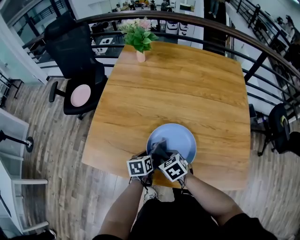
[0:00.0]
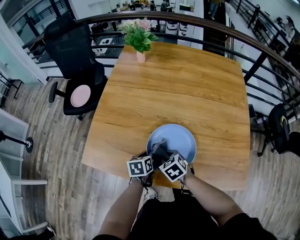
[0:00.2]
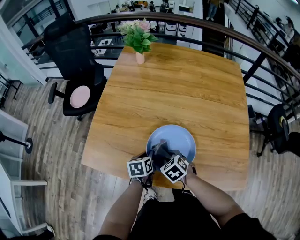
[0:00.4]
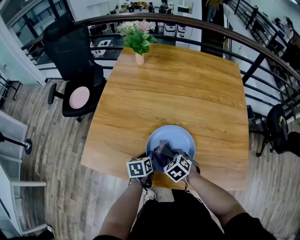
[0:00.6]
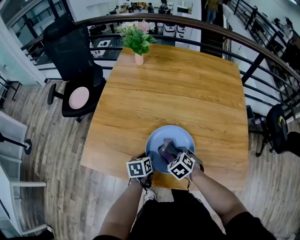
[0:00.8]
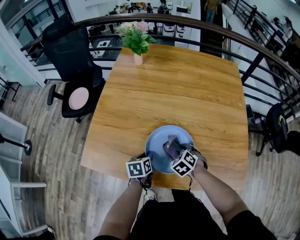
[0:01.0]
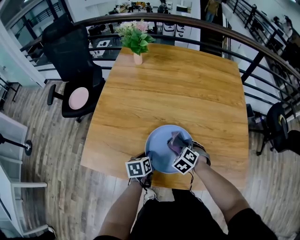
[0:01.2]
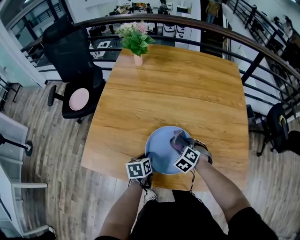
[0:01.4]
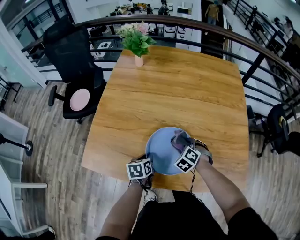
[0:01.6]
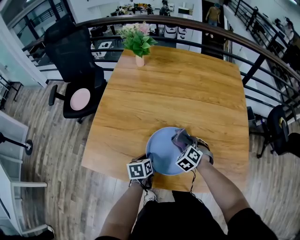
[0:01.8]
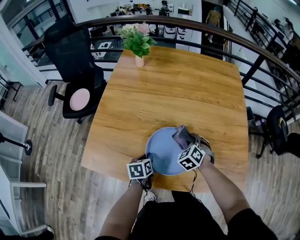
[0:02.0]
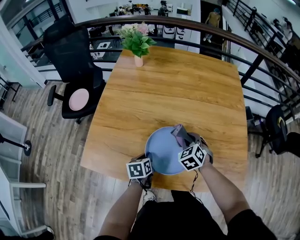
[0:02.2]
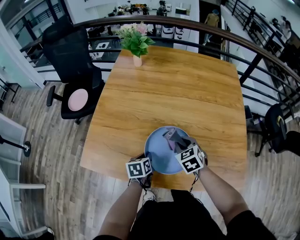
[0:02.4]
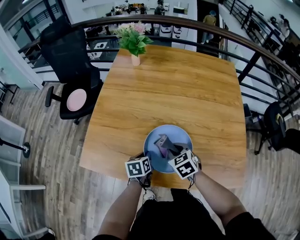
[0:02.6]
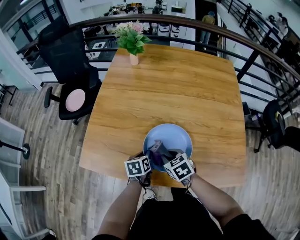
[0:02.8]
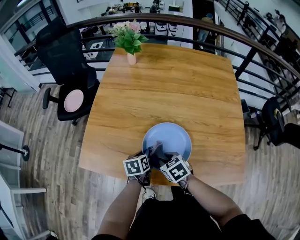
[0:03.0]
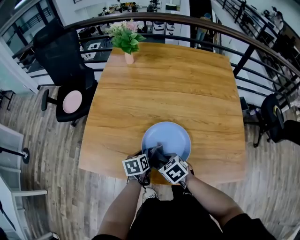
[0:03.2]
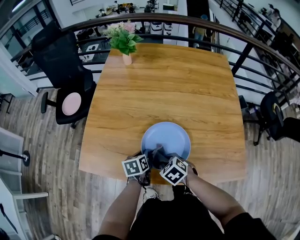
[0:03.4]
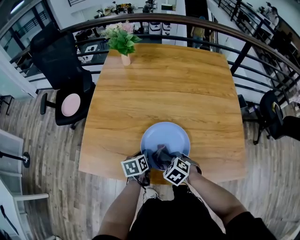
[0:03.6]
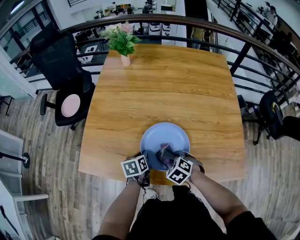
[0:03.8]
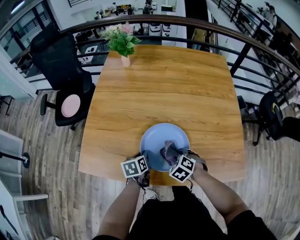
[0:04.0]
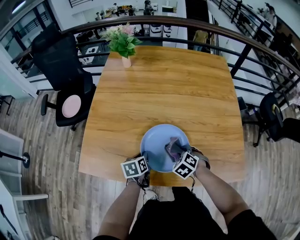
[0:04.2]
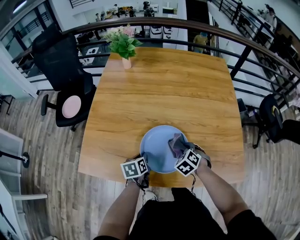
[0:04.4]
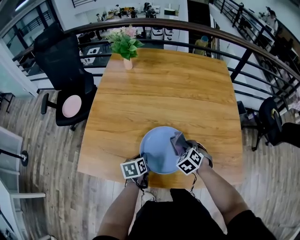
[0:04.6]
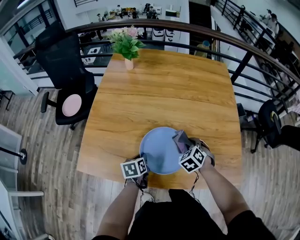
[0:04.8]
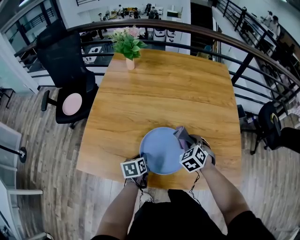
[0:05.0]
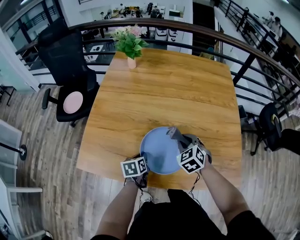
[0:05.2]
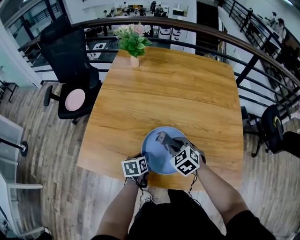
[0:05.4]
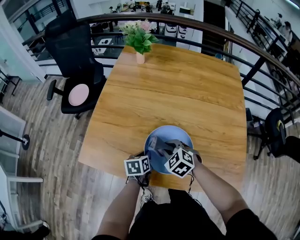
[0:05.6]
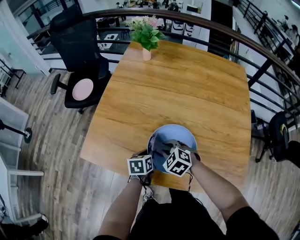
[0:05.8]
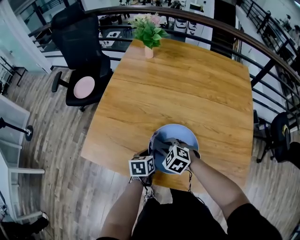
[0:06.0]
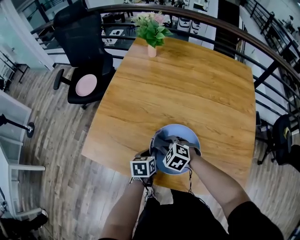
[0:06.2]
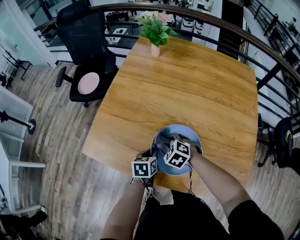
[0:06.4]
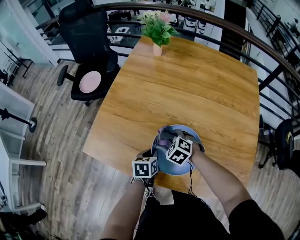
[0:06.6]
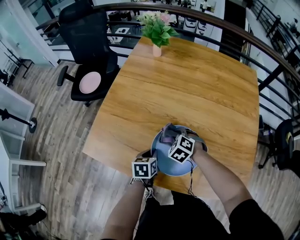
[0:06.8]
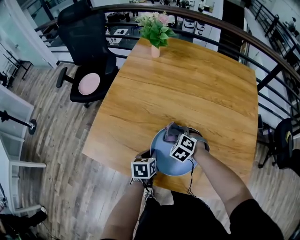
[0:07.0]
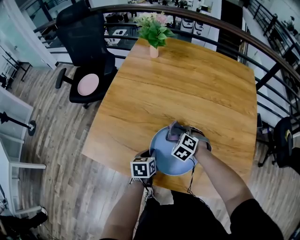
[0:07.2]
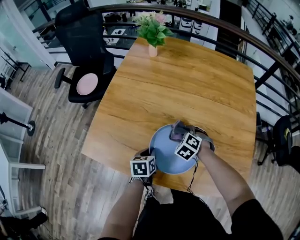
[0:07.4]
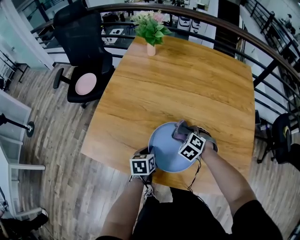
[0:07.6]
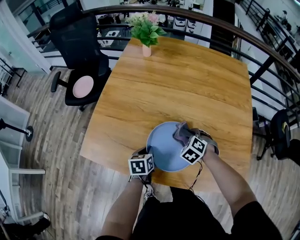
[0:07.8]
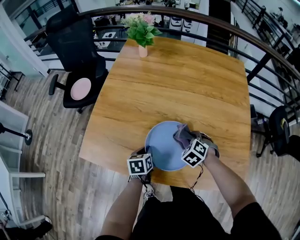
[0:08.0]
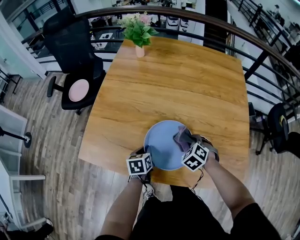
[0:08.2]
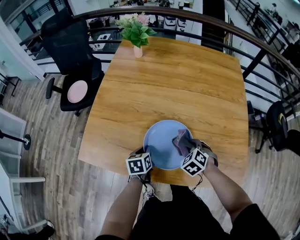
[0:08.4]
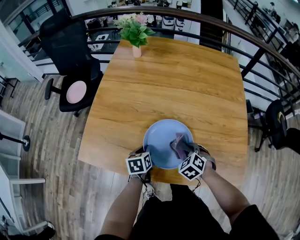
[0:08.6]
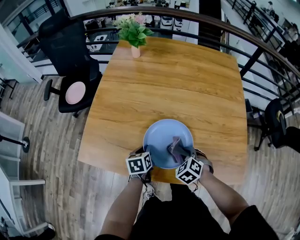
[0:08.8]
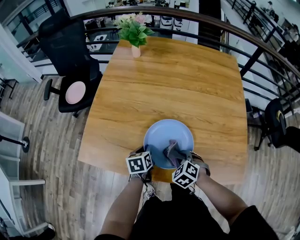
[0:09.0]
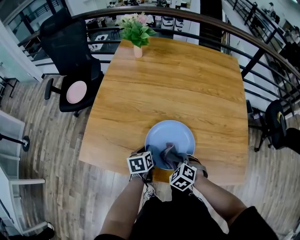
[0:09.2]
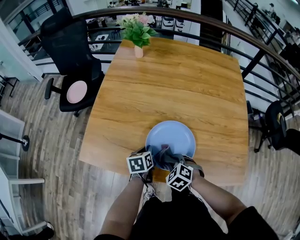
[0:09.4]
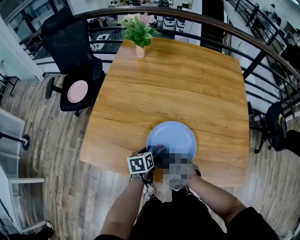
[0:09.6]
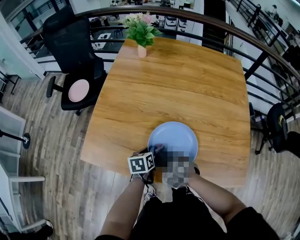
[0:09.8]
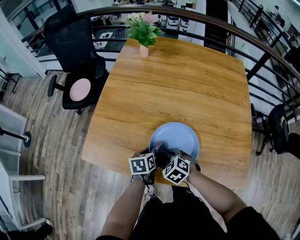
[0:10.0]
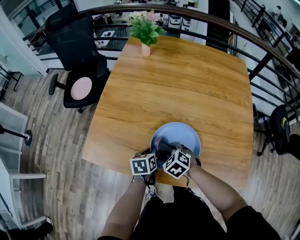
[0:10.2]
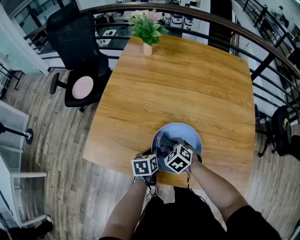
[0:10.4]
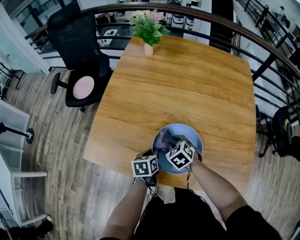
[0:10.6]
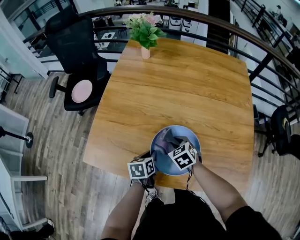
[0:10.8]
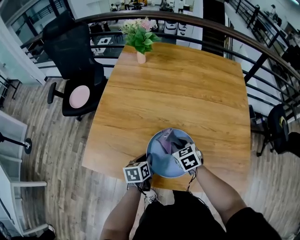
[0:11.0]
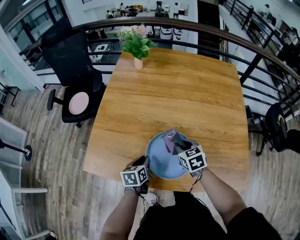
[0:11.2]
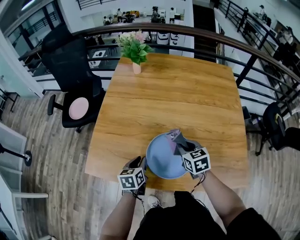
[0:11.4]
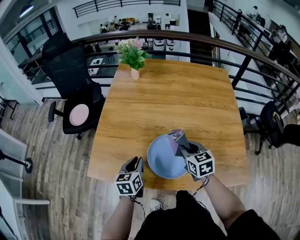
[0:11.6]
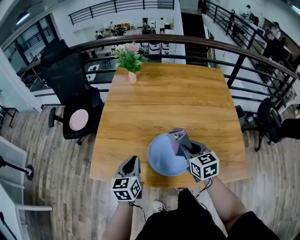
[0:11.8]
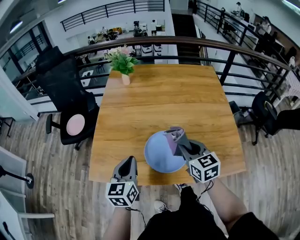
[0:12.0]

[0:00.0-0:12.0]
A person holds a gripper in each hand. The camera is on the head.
0:00.0 to 0:01.6: The right gripper ends up approximately 15 cm from where it was, and changes its angle by some 40 degrees.
0:01.6 to 0:03.0: The right gripper ends up roughly 15 cm from where it was, and turns by some 40 degrees.
0:03.0 to 0:04.4: The right gripper moves roughly 15 cm, and changes its angle by some 30 degrees.
0:04.4 to 0:06.0: The right gripper goes upward and returns, approximately 10 cm each way, and changes its angle by about 30 degrees.
0:06.0 to 0:07.6: The right gripper moves to the right and forward, some 15 cm, and rotates roughly 20 degrees.
0:07.6 to 0:09.0: The right gripper heads backward, covering roughly 15 cm.
0:09.0 to 0:10.4: The right gripper goes approximately 10 cm to the left and forward.
0:10.4 to 0:12.0: The left gripper goes about 25 cm upward, and tilts its fingers some 30 degrees upward; the right gripper heads upward and to the right, covering approximately 25 cm, and tilts its fingers about 40 degrees upward.

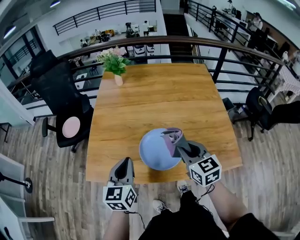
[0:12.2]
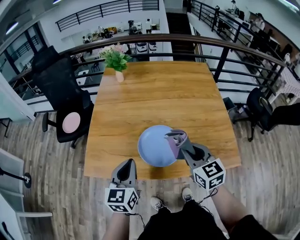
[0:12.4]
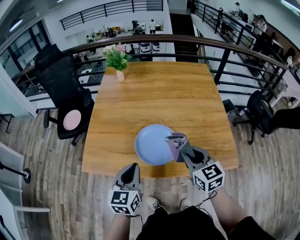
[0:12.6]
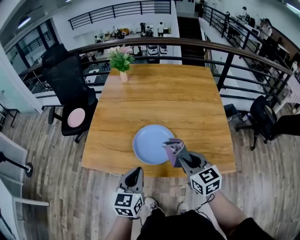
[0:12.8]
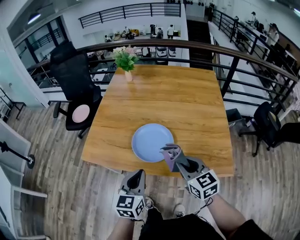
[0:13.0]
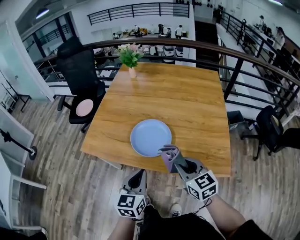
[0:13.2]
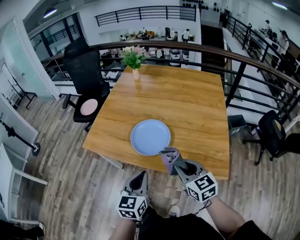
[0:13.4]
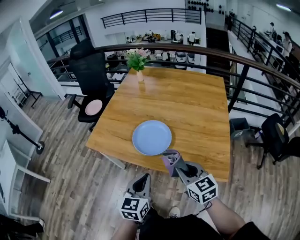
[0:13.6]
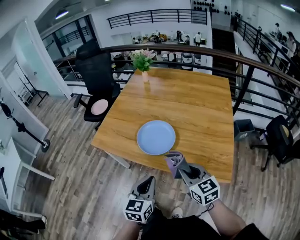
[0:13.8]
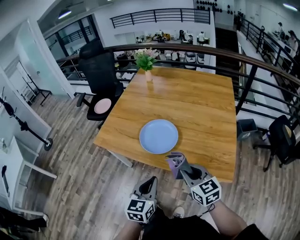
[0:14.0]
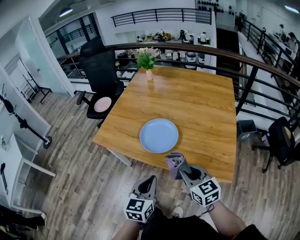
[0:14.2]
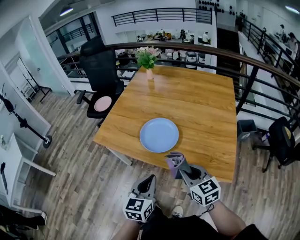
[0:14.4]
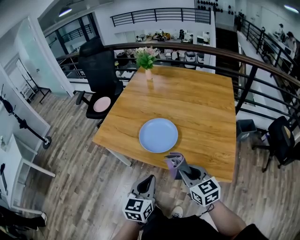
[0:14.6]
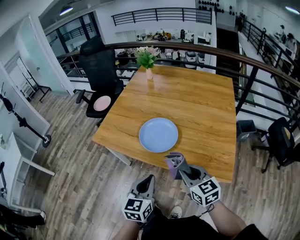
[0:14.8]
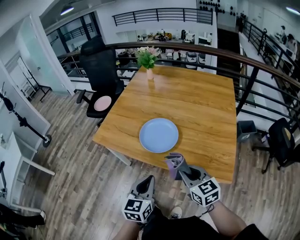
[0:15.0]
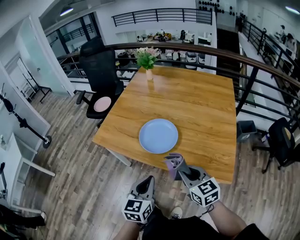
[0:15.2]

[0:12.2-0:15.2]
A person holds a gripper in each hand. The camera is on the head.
0:12.2 to 0:13.8: The grippers both shift backward and to the right by approximately 25 cm. The right gripper turns by some 20 degrees.
0:13.8 to 0:15.2: There are only small adjustments of the grippers.

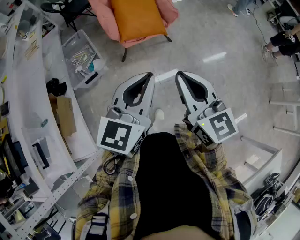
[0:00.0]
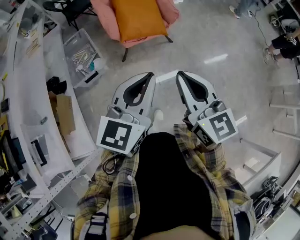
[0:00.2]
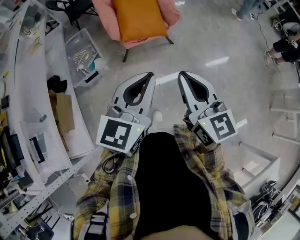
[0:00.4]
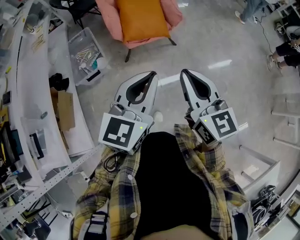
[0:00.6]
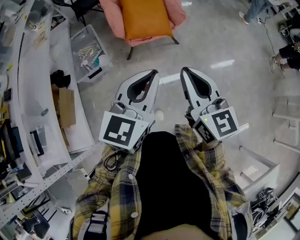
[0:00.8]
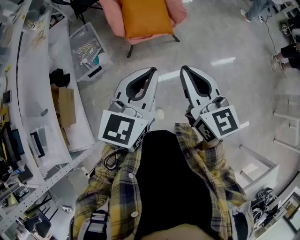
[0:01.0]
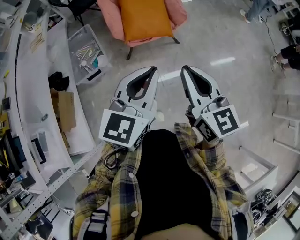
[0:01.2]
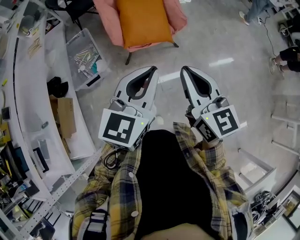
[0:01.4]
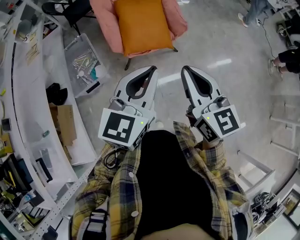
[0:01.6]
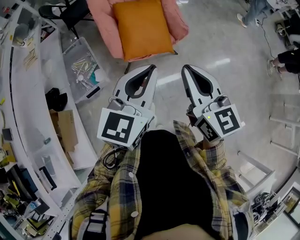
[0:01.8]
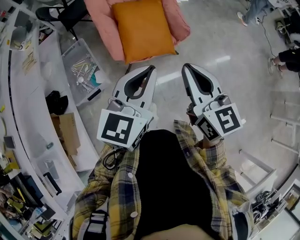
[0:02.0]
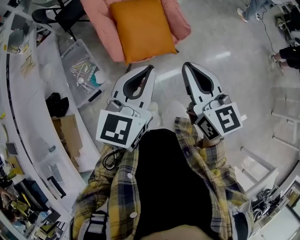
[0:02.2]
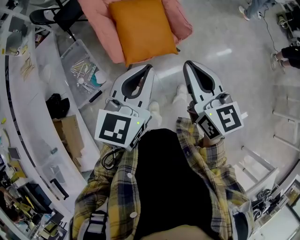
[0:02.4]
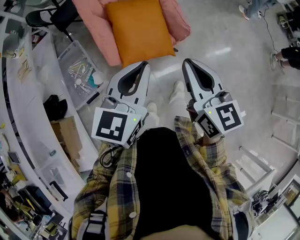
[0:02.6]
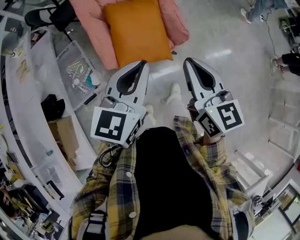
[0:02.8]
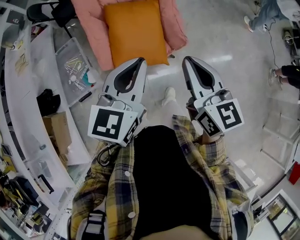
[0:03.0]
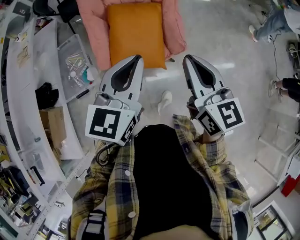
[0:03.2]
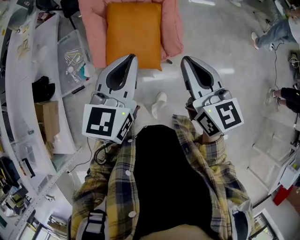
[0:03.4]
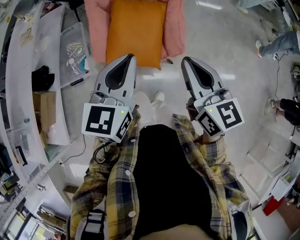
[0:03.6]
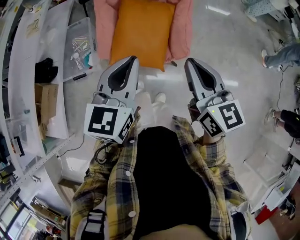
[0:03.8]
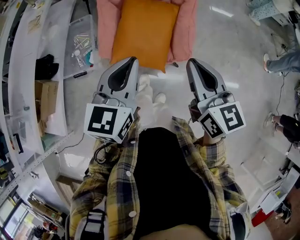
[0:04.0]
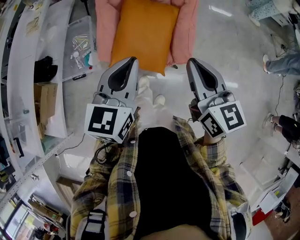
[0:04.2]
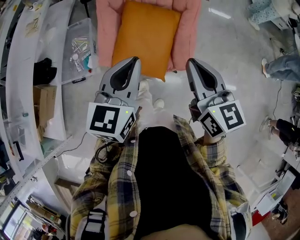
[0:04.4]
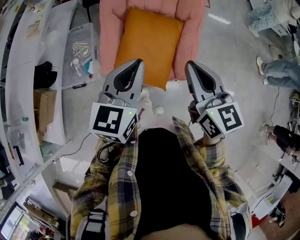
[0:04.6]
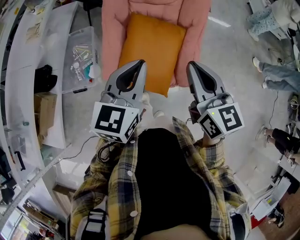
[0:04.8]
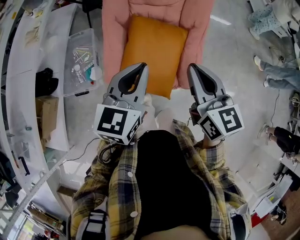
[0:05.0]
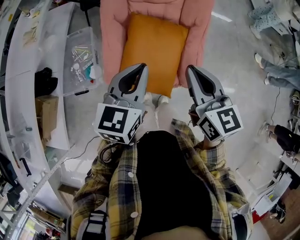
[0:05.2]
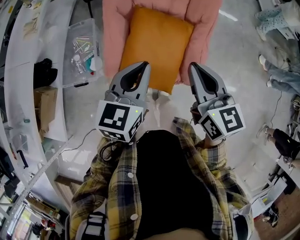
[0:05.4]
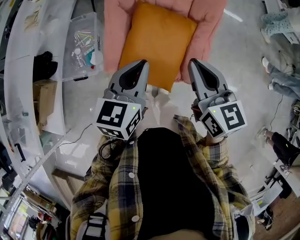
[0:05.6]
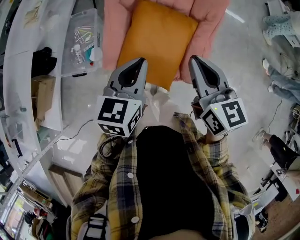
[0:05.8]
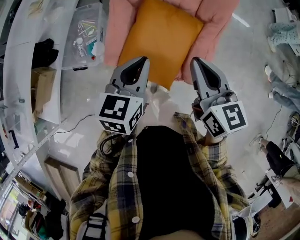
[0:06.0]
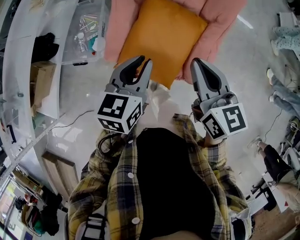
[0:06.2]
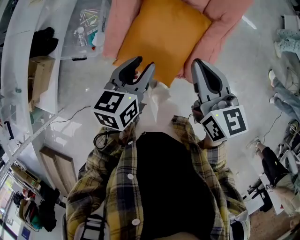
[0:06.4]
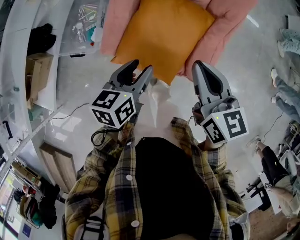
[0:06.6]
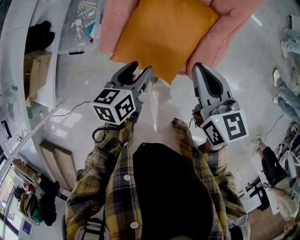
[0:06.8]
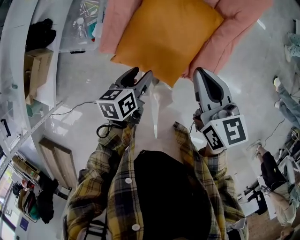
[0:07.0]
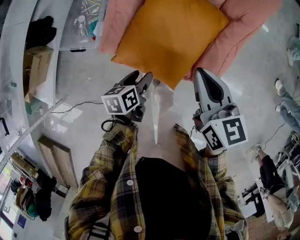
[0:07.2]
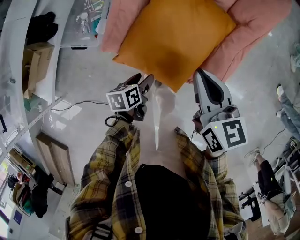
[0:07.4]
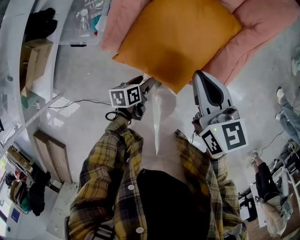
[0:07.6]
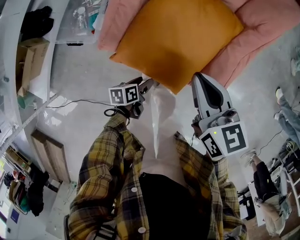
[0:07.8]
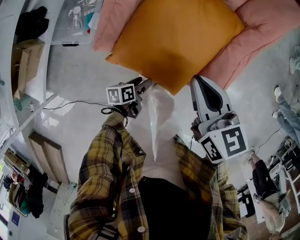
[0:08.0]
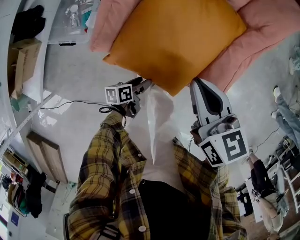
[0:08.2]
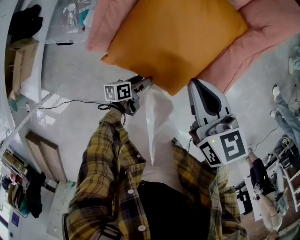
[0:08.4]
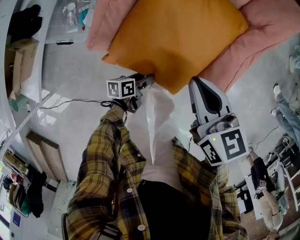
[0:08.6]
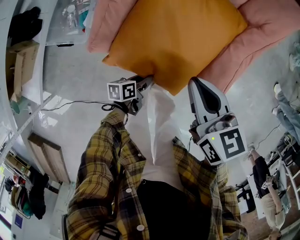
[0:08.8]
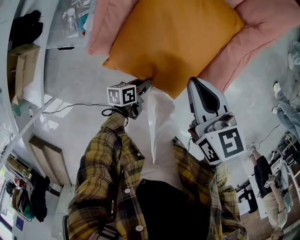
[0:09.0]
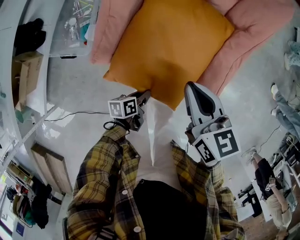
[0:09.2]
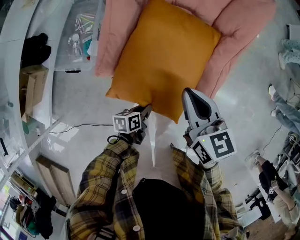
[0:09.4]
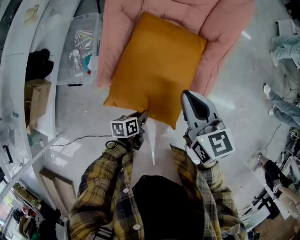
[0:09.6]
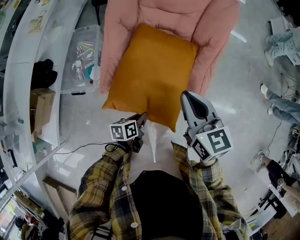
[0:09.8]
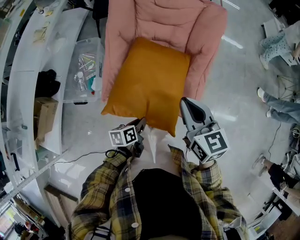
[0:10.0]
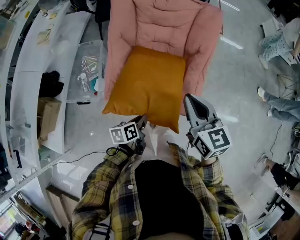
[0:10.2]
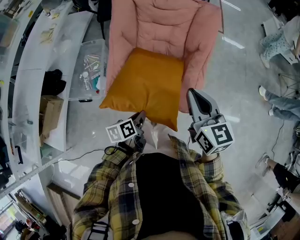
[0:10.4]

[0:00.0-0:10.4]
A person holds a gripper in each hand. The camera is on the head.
0:00.0 to 0:01.4: The grippers both shift forward by approximately 10 cm.
0:01.4 to 0:03.0: The two grippers go some 30 cm forward.
0:03.0 to 0:04.4: Both grippers travel together forward, roughly 10 cm. The left gripper turns by roughly 20 degrees, while the right gripper rotates about 20 degrees.
0:04.4 to 0:06.0: The two grippers go roughly 15 cm forward and downward.
0:06.0 to 0:07.4: The right gripper moves downward, some 15 cm. Meanwhile the left gripper goes about 35 cm downward, twists about 40 degrees counterclockwise, seen from behind, and opens.
0:07.4 to 0:09.0: The left gripper shifts about 10 cm downward, and closes its fingers. The right gripper moves downward, some 5 cm.
0:09.0 to 0:10.4: The right gripper shifts about 25 cm upward and to the right, and swivels roughly 20 degrees. The left gripper heads upward, covering some 30 cm.
